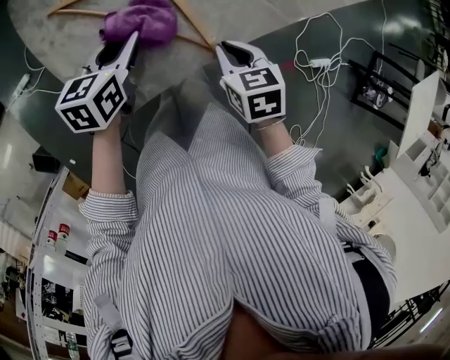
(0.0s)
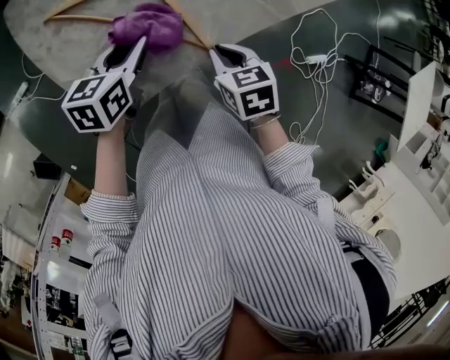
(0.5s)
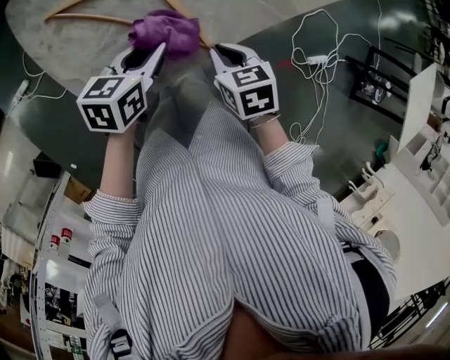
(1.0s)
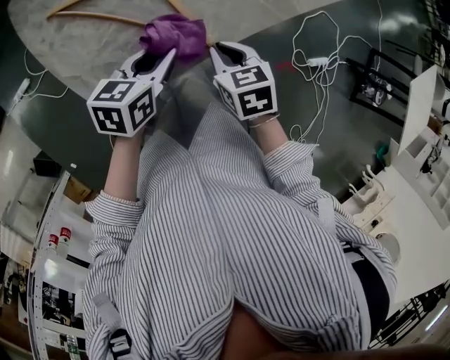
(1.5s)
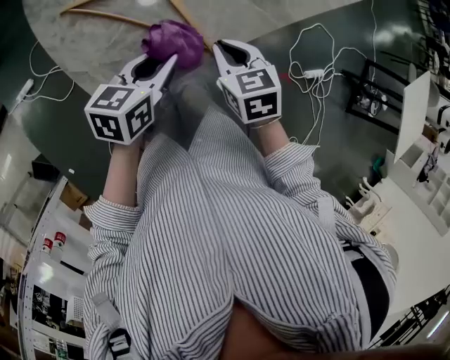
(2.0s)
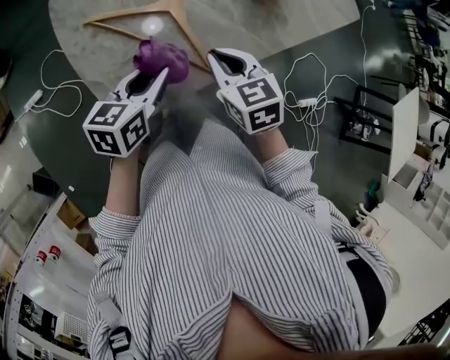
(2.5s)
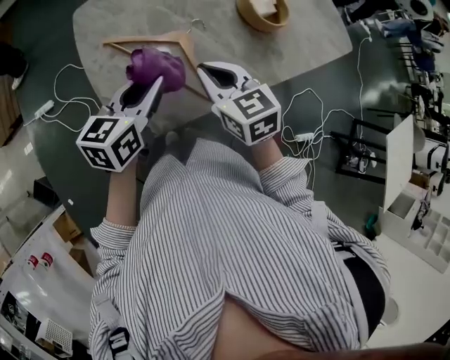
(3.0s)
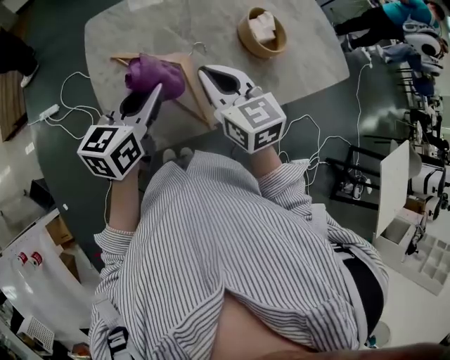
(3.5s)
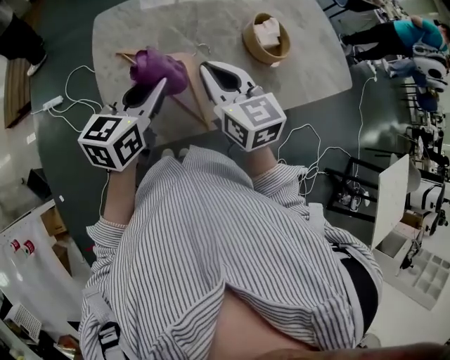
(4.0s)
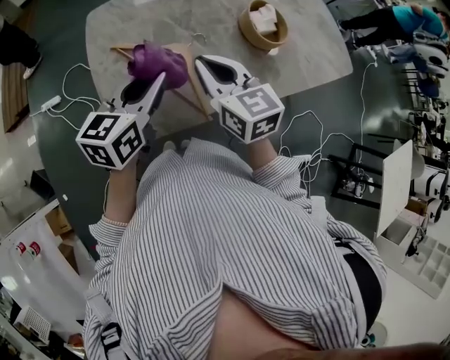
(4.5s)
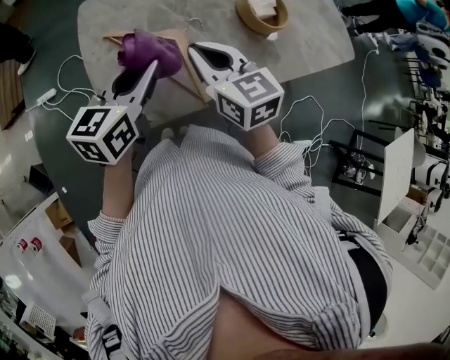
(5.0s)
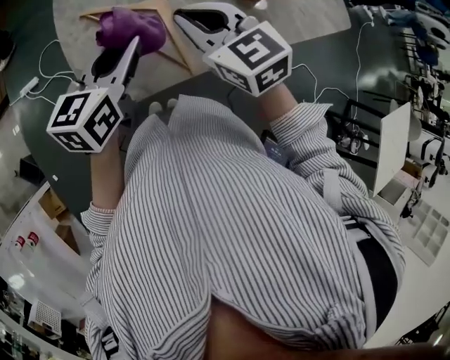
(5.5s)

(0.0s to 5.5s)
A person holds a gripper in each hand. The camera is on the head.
0.0s - 2.0s: The left gripper is displaced to the right and backward by roughly 10 cm.
2.0s - 3.5s: The grippers both shift upward and to the left by some 20 cm. The left gripper swivels about 30 degrees. The right gripper turns by about 30 degrees.
3.5s - 5.5s: The grippers stay close to where they were, moving slightly.

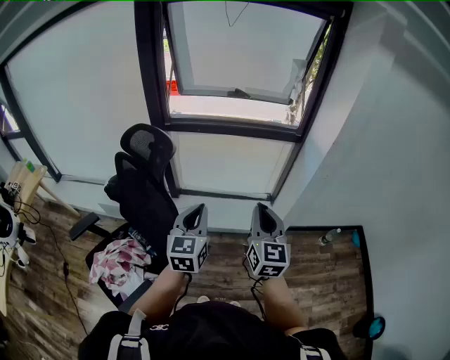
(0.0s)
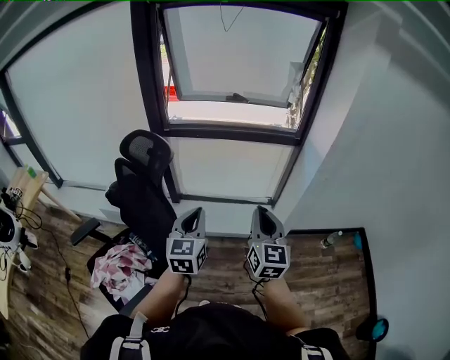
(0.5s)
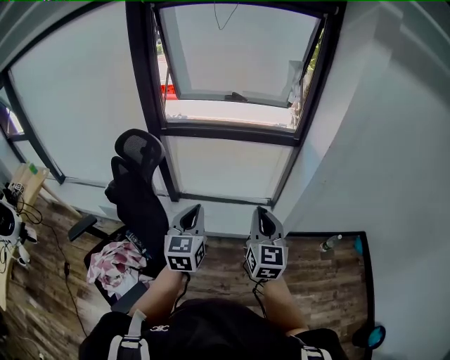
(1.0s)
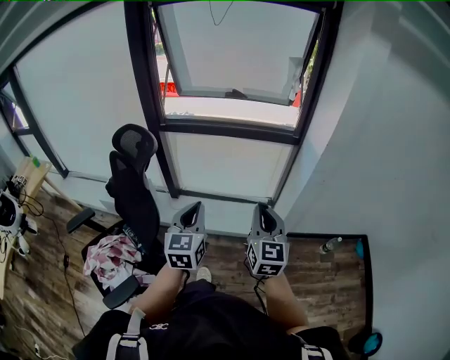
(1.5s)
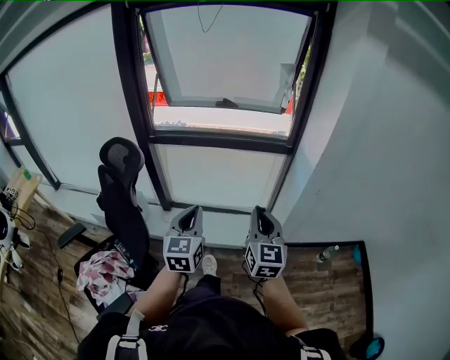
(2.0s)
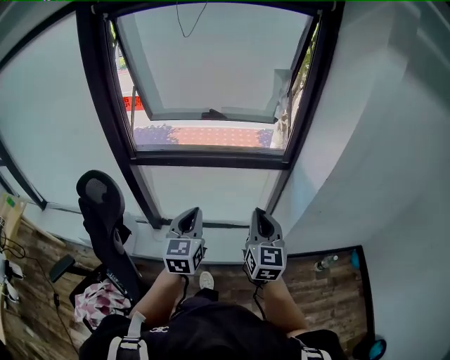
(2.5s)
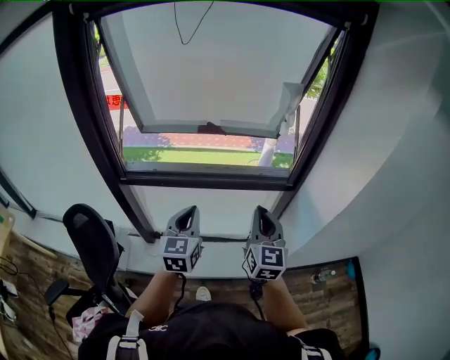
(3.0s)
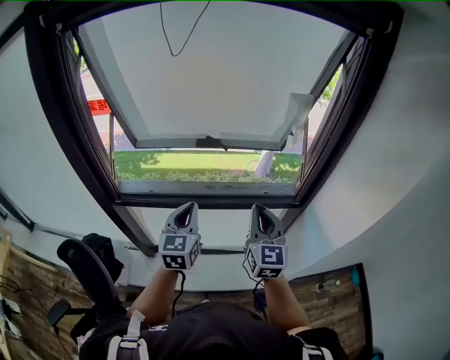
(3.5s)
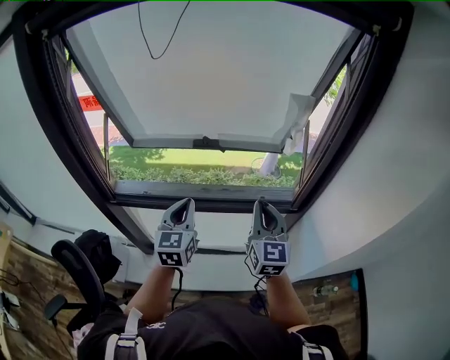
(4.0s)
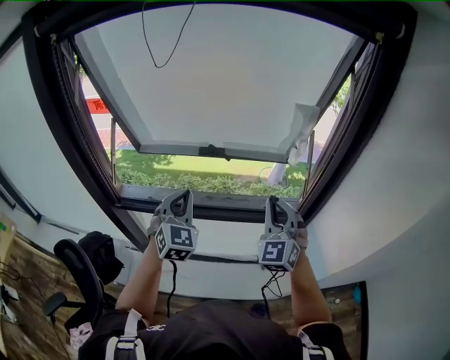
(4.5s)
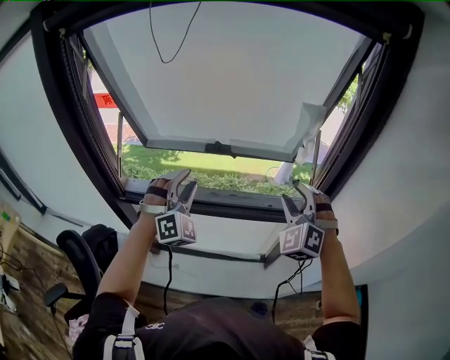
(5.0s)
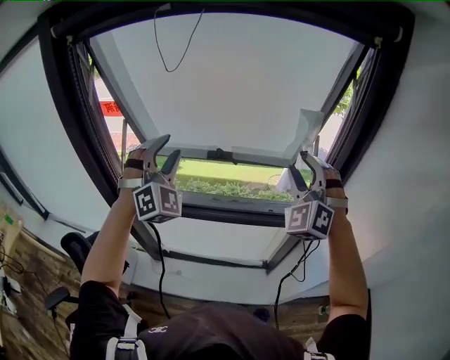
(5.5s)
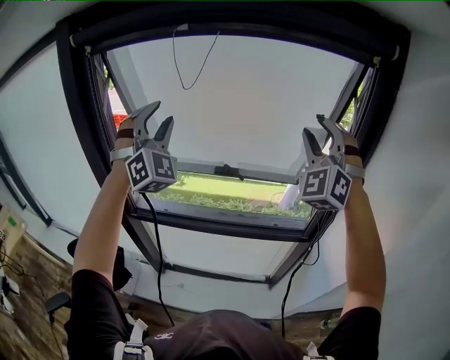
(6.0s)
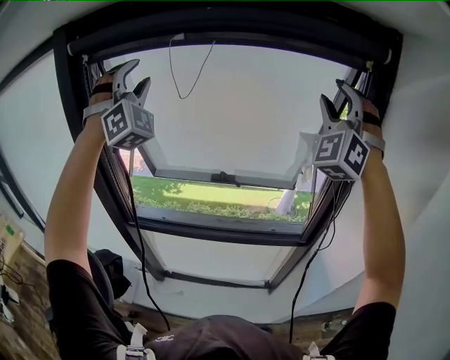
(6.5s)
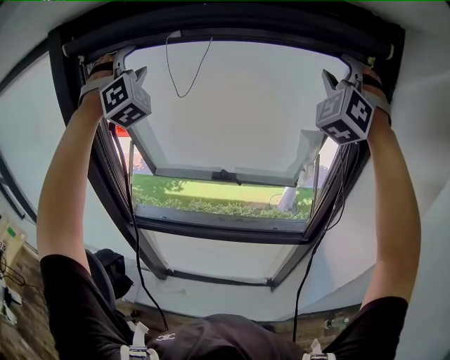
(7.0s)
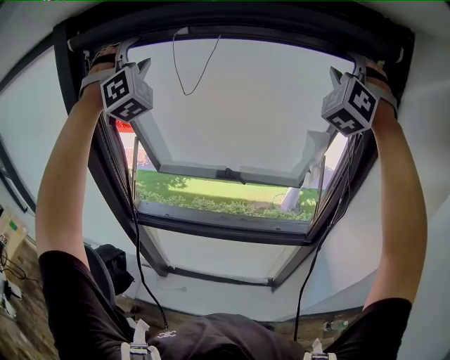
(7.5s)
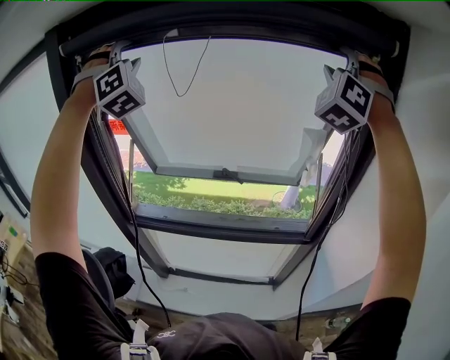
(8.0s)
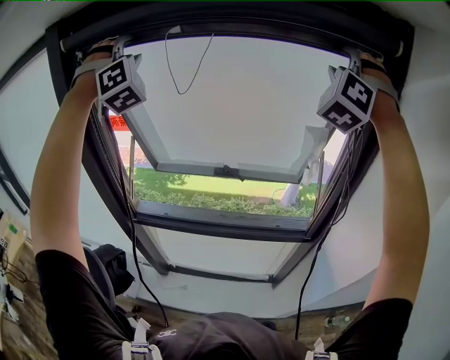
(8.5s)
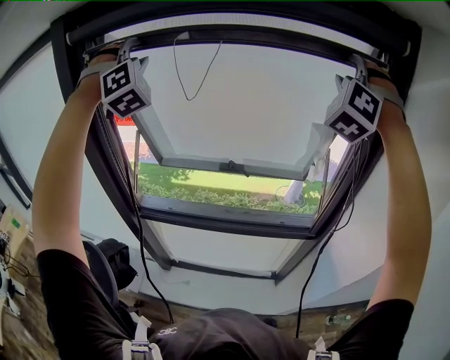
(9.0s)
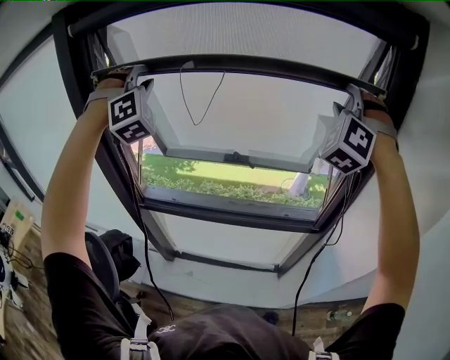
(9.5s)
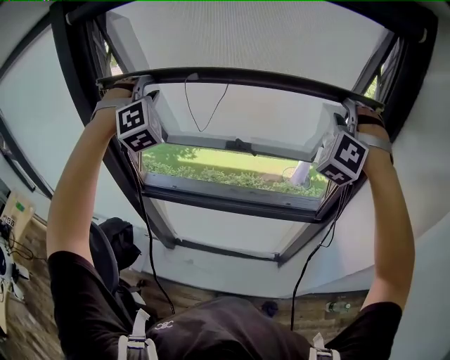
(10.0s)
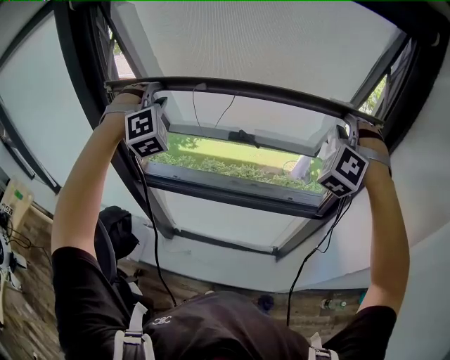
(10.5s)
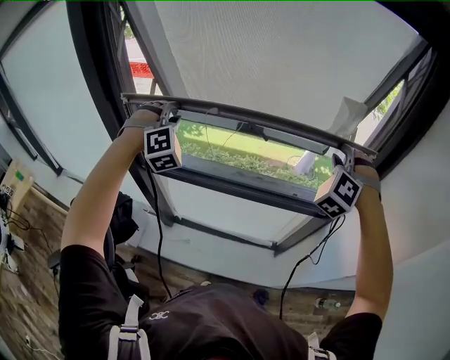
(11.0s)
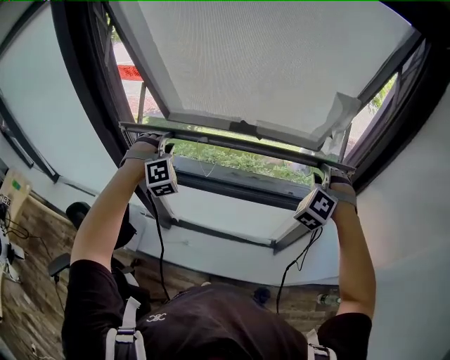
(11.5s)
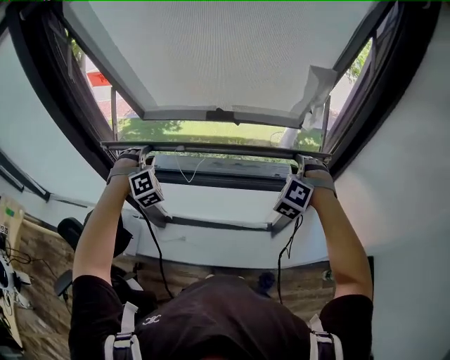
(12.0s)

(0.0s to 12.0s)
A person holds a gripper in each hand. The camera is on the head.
0.0s - 2.0s: Both grippers travel together to the right and forward, about 15 cm.
2.0s - 4.0s: The two grippers travel together, forward, some 50 cm.
4.0s - 6.0s: Both grippers travel together upward, approximately 30 cm. The left gripper rotates around the line of its fingers by approximately 70 degrees, clockwise from behind, and opens its fingers, while the right gripper rotates around the line of its fingers by roughly 70 degrees, counterclockwise from behind, and opens up.
6.0s - 8.0s: The right gripper goes roughly 15 cm upward, and changes its angle by about 20 degrees. The left gripper heads upward, to the left and forward, covering approximately 20 cm, and rotates approximately 20 degrees.
8.0s - 10.0s: Both grippers move downward, some 20 cm.
10.0s - 12.0s: The grippers both shift downward by some 35 cm. The right gripper swivels roughly 30 degrees. Meanwhile the left gripper swivels roughly 20 degrees.

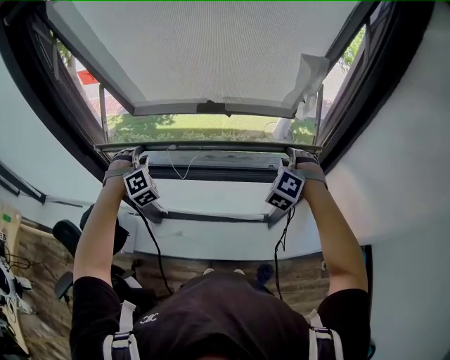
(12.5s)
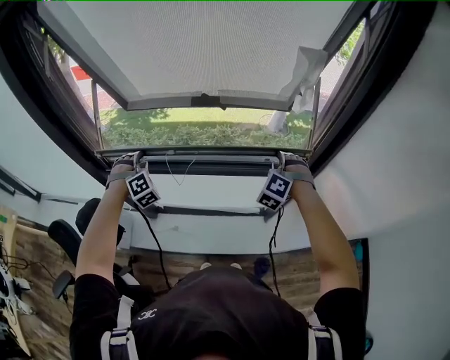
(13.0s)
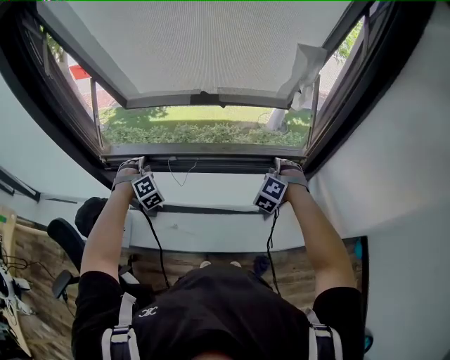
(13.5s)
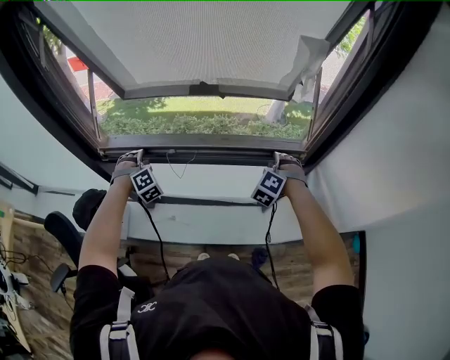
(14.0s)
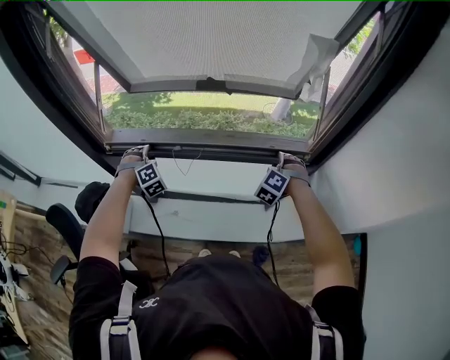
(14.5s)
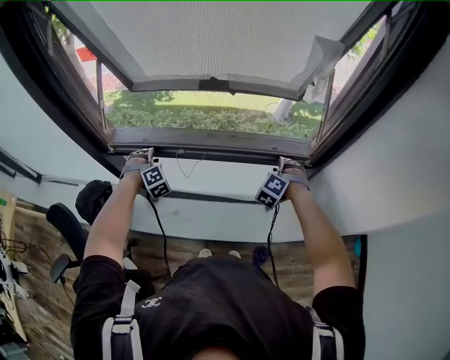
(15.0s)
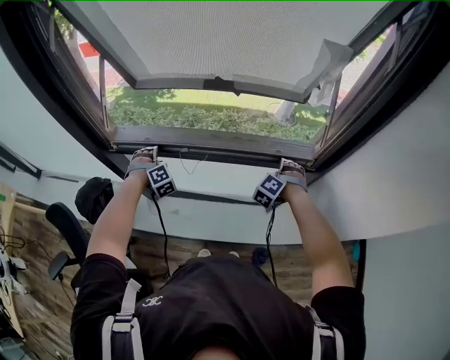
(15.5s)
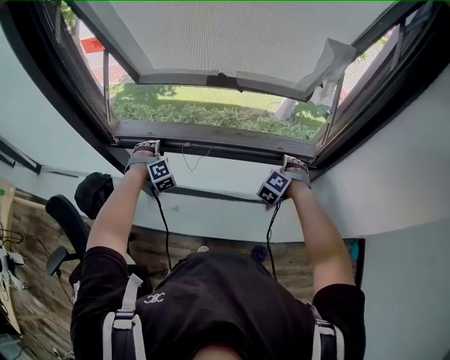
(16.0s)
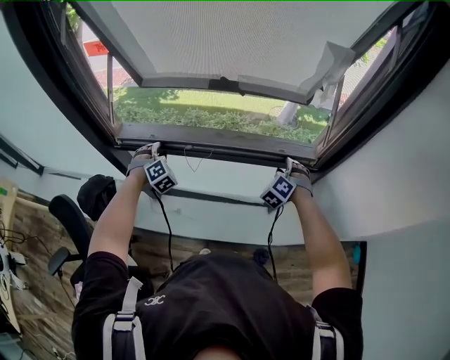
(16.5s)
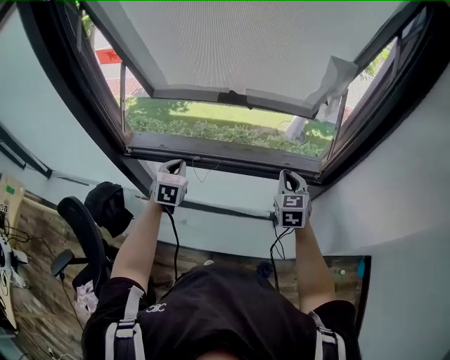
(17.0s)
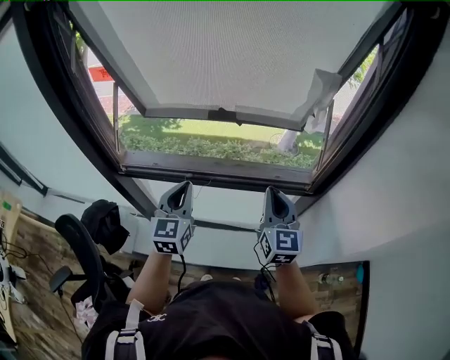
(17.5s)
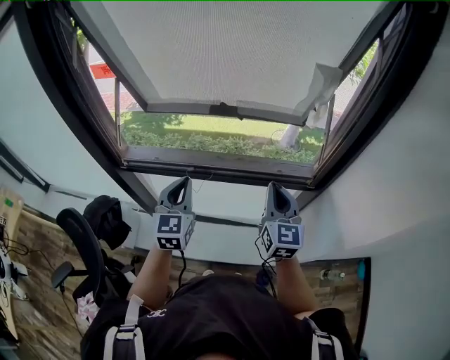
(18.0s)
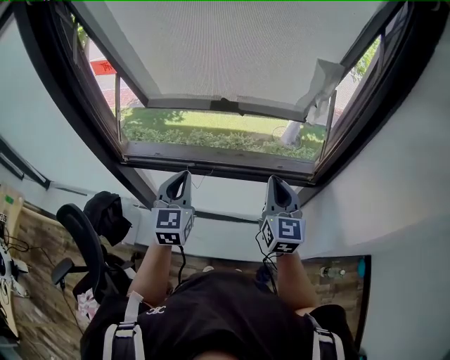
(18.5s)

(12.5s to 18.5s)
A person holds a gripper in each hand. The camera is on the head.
12.5s - 14.5s: The two grippers go approximately 15 cm downward.
14.5s - 16.5s: The grippers stay close to where they were, moving slightly.
16.5s - 18.5s: The right gripper heads upward and backward, covering approximately 20 cm, tips its fingers upward by approximately 40 degrees, and closes up. The left gripper travels upward, to the right and backward by about 25 cm, twists some 60 degrees counterclockwise, seen from behind, and closes its fingers.

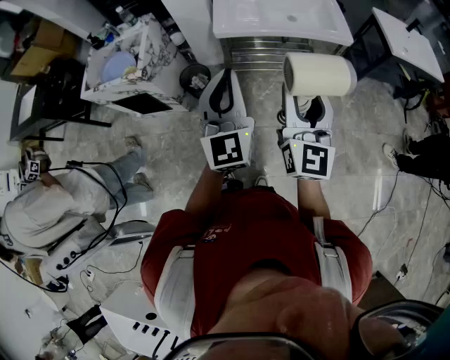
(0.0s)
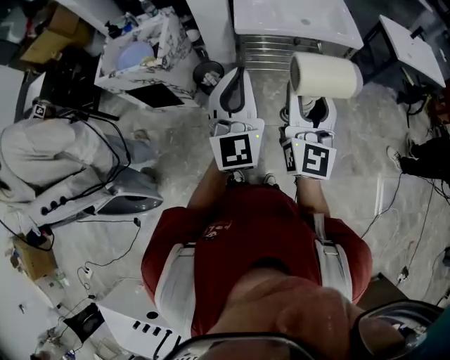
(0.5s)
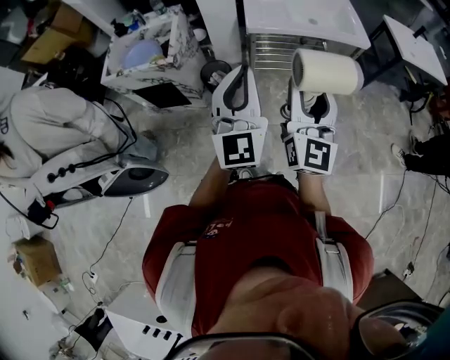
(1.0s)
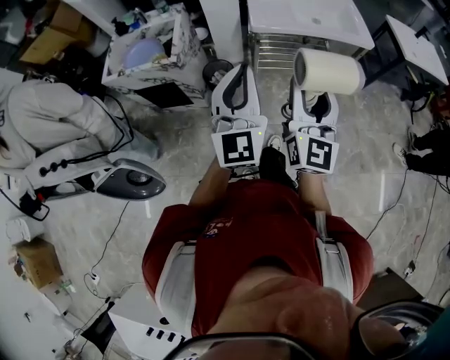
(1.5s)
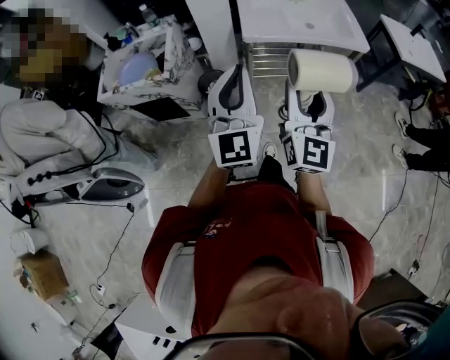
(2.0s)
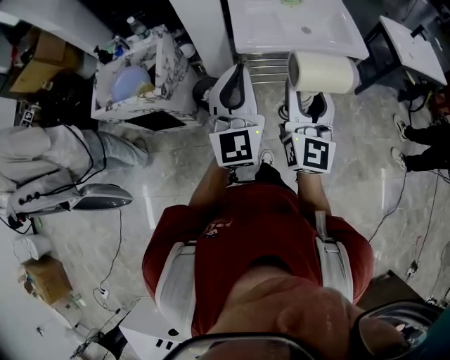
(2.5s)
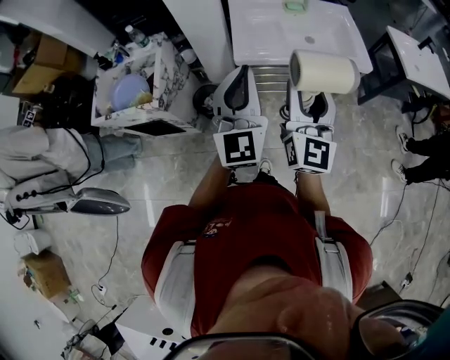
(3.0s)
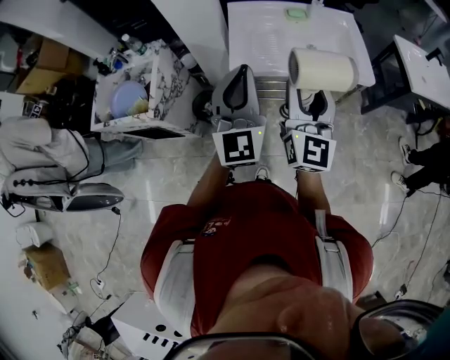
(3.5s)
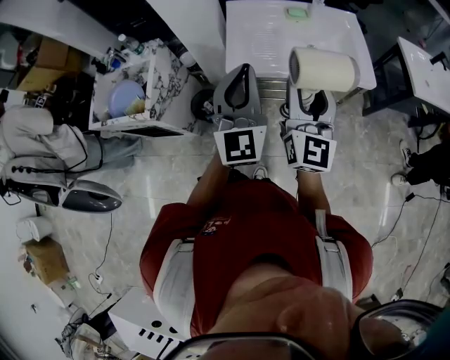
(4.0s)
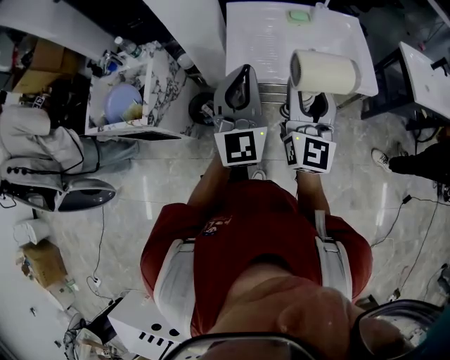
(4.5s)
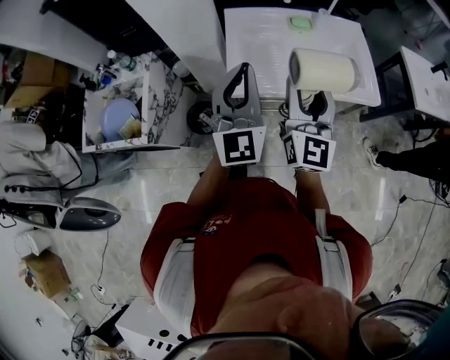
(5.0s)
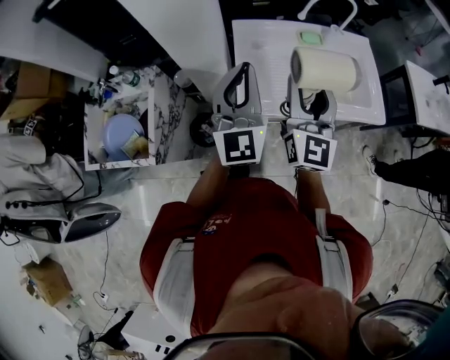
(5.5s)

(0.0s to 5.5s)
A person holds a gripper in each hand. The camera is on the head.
0.0s - 2.0s: The grippers both shift to the left by roughly 15 cm.
2.0s - 3.5s: Both grippers travel together forward and to the right, roughly 25 cm.
3.5s - 5.5s: The grippers both shift forward by some 25 cm.
